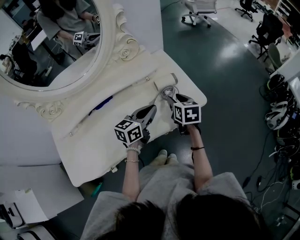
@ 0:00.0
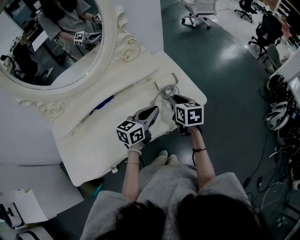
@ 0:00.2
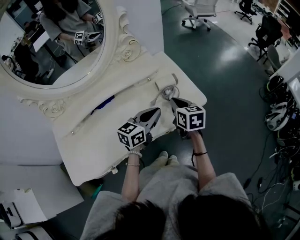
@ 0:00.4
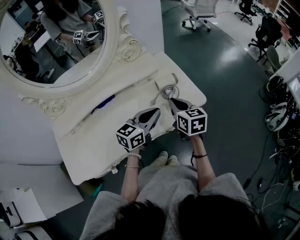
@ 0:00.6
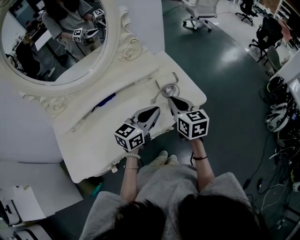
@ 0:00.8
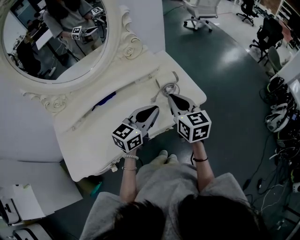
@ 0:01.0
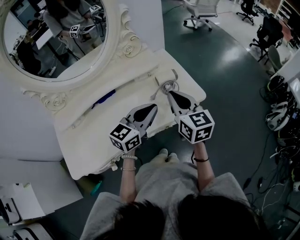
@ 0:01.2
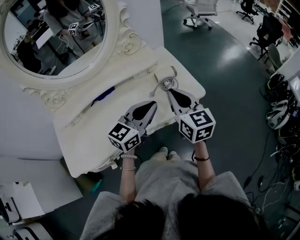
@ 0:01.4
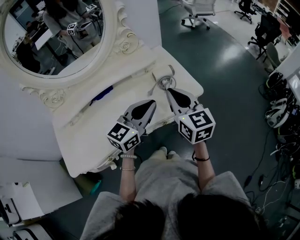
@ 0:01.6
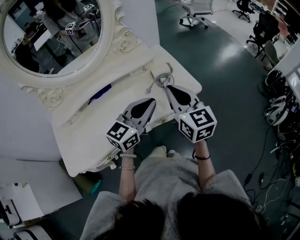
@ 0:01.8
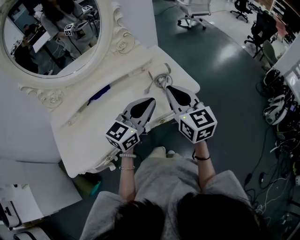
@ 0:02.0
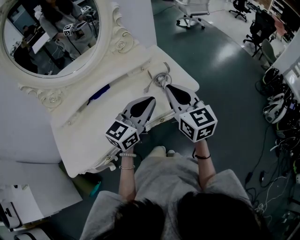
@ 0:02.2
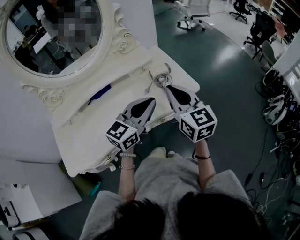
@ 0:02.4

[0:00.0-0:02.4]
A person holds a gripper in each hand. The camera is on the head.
0:00.0 to 0:01.2: The right gripper is displaced upward and backward by roughly 15 cm, changes its angle by about 30 degrees, and closes up, while the left gripper heads upward and backward, covering approximately 10 cm.
0:01.2 to 0:02.4: The left gripper moves approximately 5 cm. Meanwhile the right gripper heads backward, covering approximately 5 cm.

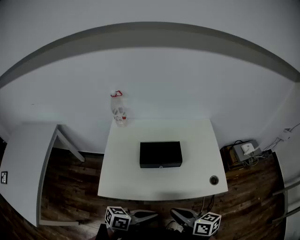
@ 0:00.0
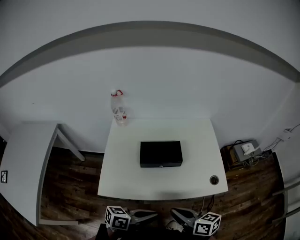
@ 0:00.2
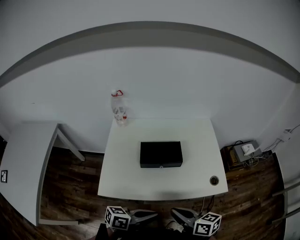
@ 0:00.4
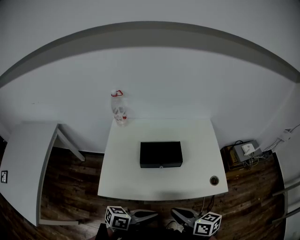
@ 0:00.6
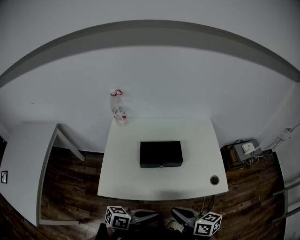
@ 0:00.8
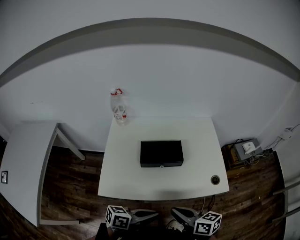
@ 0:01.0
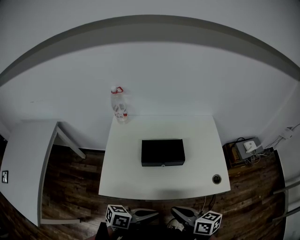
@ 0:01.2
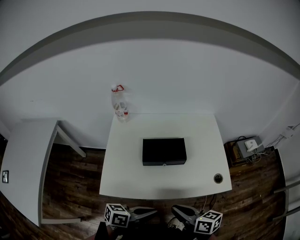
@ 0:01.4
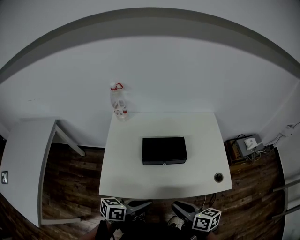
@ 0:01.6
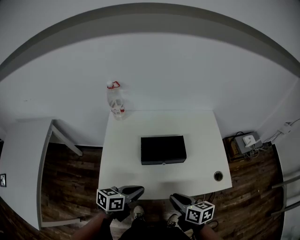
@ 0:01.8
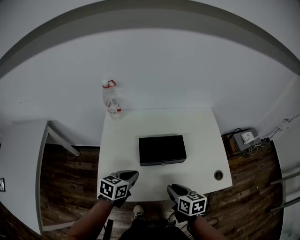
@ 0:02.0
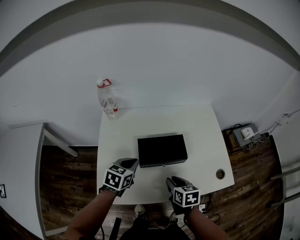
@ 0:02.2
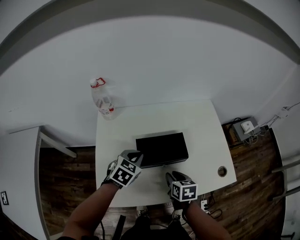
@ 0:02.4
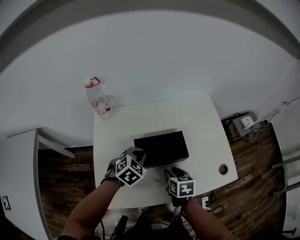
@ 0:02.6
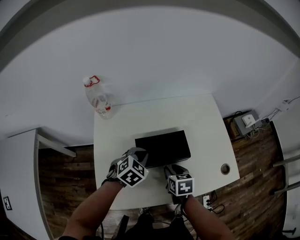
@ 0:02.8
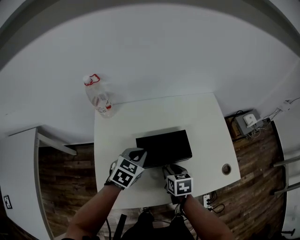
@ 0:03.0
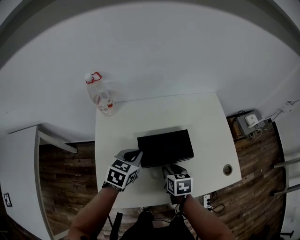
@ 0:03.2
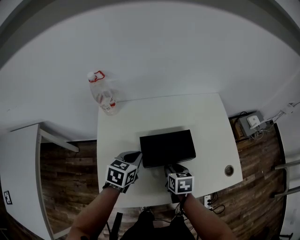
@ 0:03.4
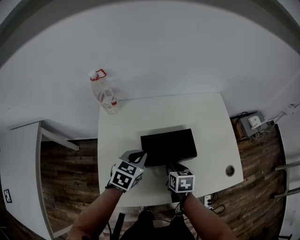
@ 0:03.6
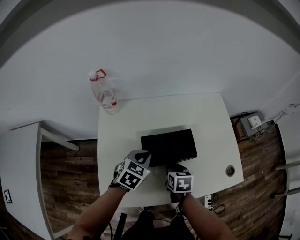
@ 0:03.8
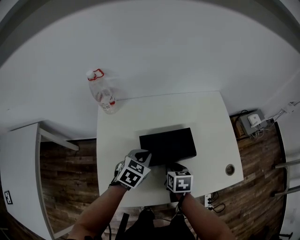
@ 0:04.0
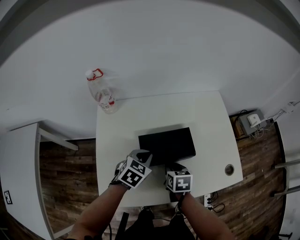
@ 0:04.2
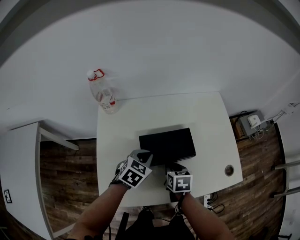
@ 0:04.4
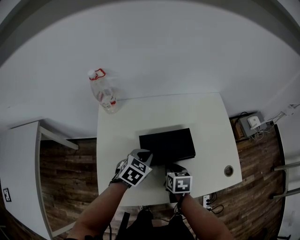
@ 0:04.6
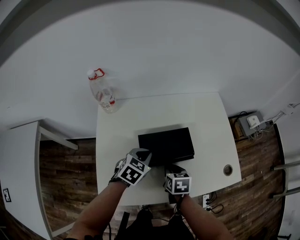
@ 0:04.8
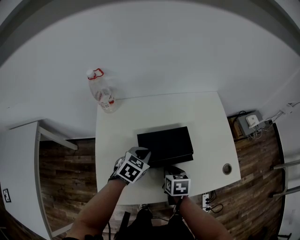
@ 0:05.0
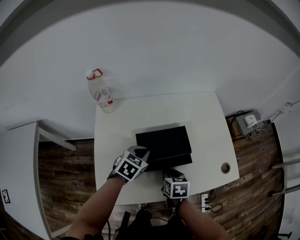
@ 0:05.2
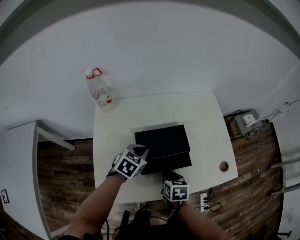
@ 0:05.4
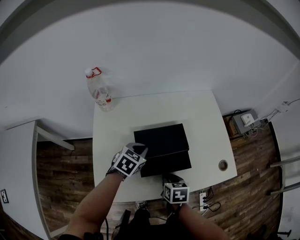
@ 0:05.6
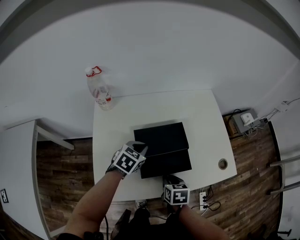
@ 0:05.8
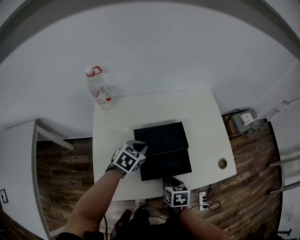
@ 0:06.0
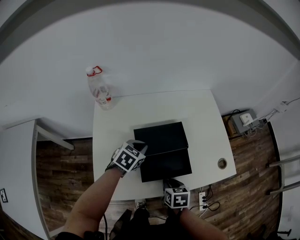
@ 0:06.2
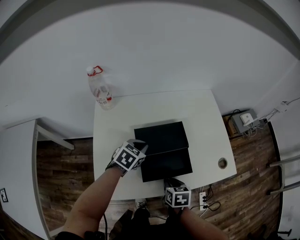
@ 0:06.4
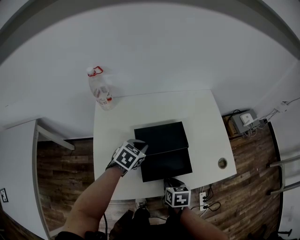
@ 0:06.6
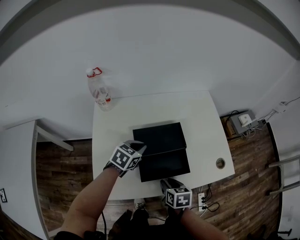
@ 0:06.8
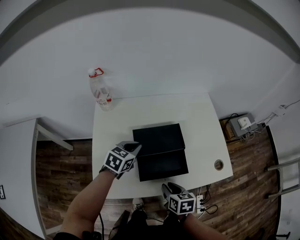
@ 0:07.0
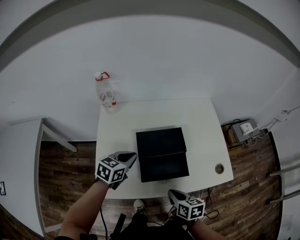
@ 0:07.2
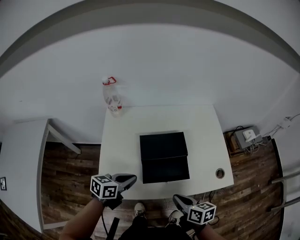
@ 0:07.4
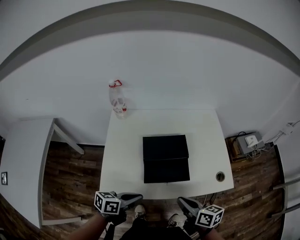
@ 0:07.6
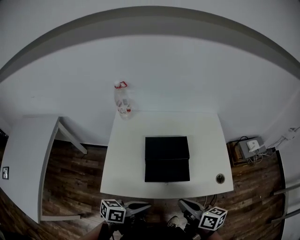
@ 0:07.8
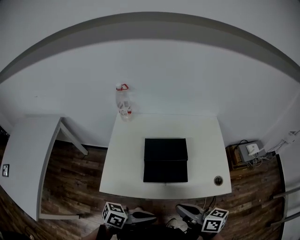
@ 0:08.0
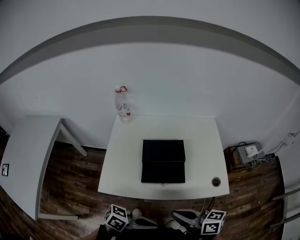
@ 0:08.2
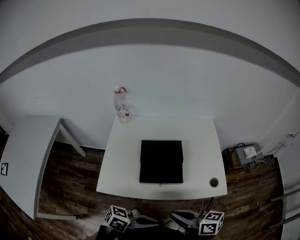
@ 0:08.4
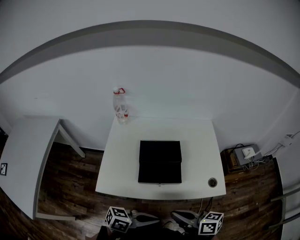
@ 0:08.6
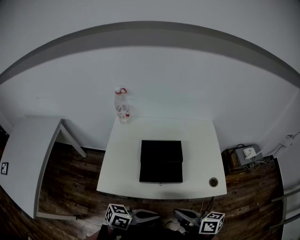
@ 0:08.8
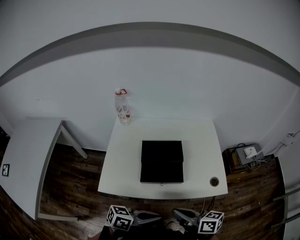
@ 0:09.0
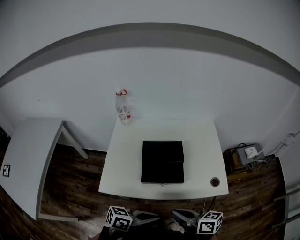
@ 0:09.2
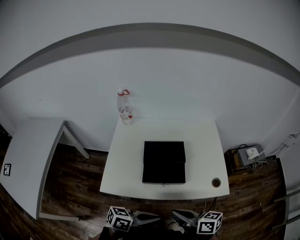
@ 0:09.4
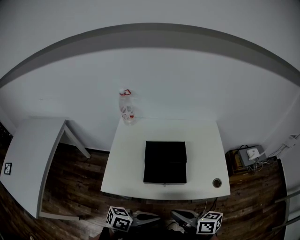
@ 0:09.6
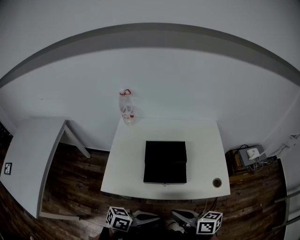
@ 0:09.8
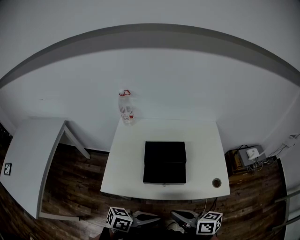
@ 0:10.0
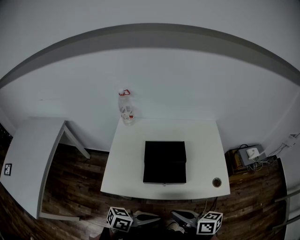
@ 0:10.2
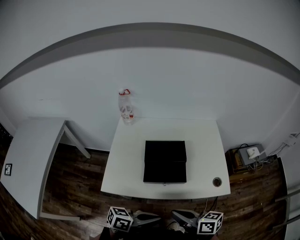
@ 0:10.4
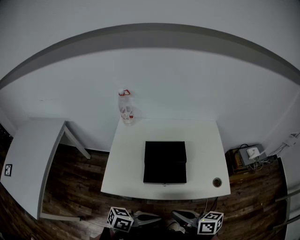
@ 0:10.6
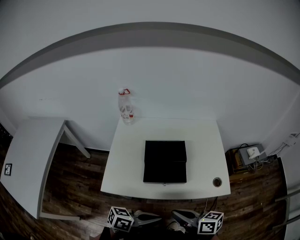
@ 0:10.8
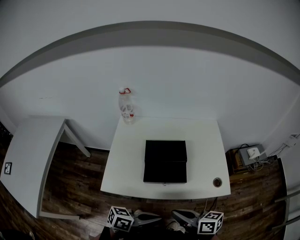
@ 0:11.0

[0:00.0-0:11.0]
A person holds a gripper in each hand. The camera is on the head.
0:00.0 to 0:01.6: The left gripper is displaced to the left and forward by about 10 cm.
0:01.6 to 0:03.2: The left gripper moves forward, some 25 cm, and swivels about 50 degrees, while the right gripper heads forward and downward, covering some 25 cm, and swivels about 40 degrees.
0:03.2 to 0:04.8: The left gripper ends up approximately 5 cm from where it was.
0:04.8 to 0:06.2: The right gripper shifts about 10 cm backward.
0:06.2 to 0:07.8: The left gripper moves backward, about 25 cm, and angles its fingers upward, by approximately 30 degrees, while the right gripper heads upward and backward, covering some 20 cm, and angles its fingers upward, by some 40 degrees.
0:07.8 to 0:09.4: The right gripper moves some 5 cm; the left gripper ends up about 10 cm from where it was.
0:09.4 to 0:11.0: Both grippers stay put.

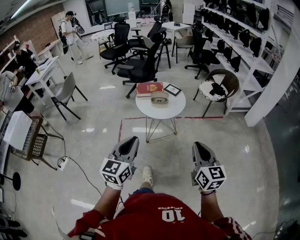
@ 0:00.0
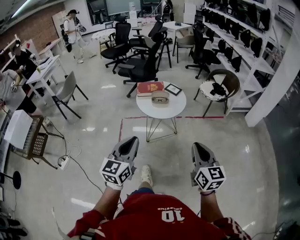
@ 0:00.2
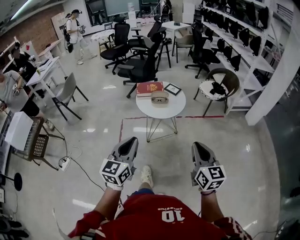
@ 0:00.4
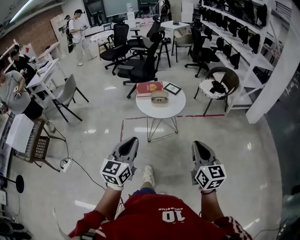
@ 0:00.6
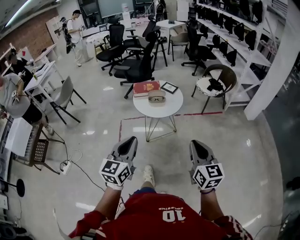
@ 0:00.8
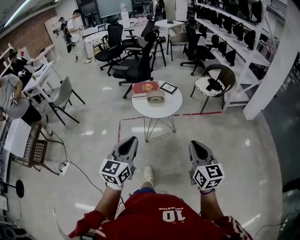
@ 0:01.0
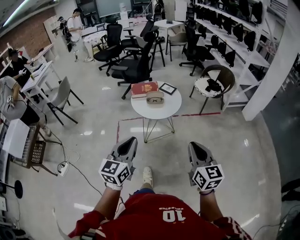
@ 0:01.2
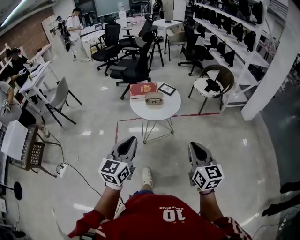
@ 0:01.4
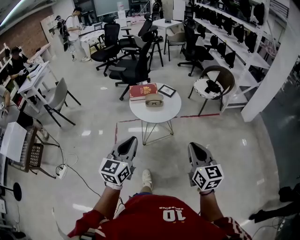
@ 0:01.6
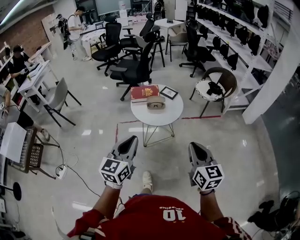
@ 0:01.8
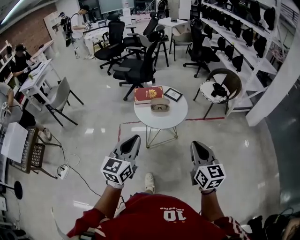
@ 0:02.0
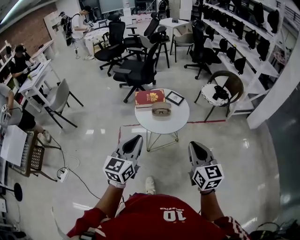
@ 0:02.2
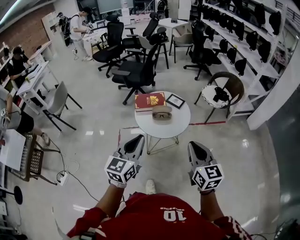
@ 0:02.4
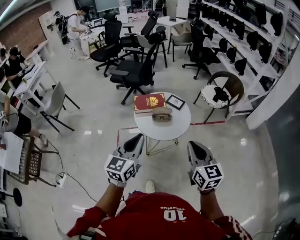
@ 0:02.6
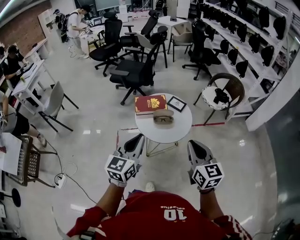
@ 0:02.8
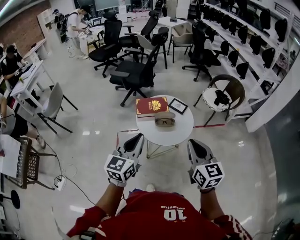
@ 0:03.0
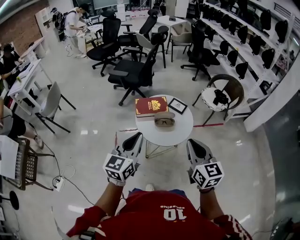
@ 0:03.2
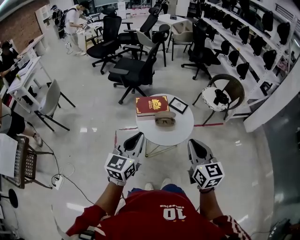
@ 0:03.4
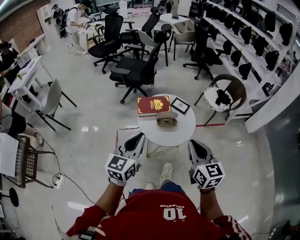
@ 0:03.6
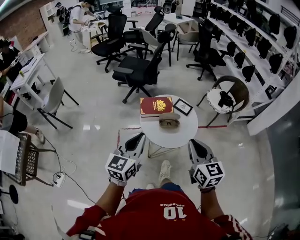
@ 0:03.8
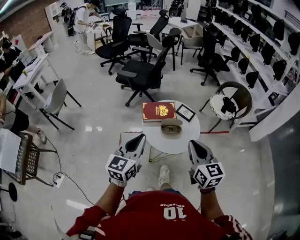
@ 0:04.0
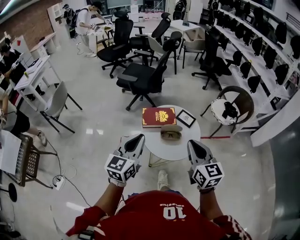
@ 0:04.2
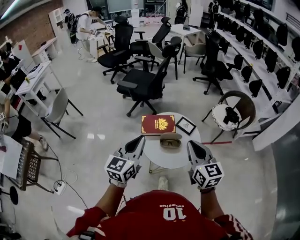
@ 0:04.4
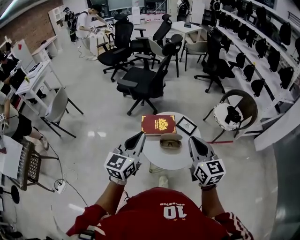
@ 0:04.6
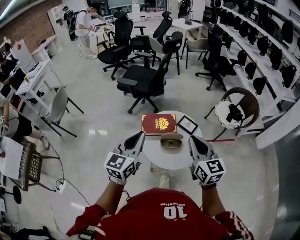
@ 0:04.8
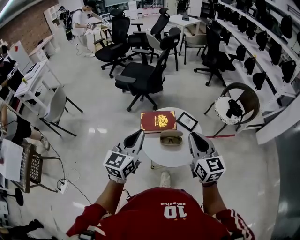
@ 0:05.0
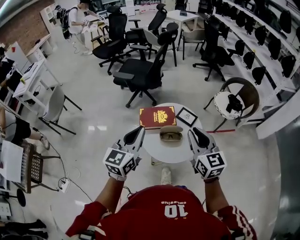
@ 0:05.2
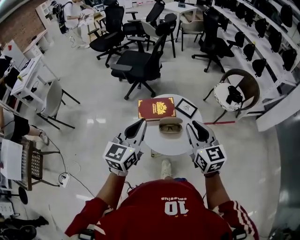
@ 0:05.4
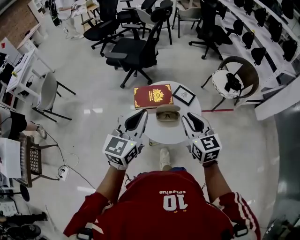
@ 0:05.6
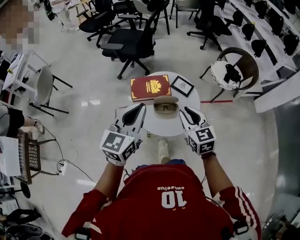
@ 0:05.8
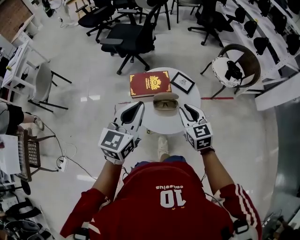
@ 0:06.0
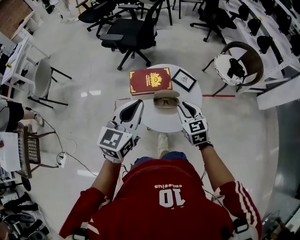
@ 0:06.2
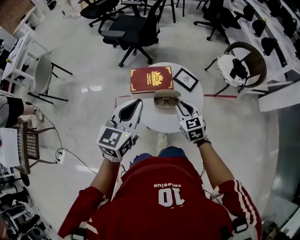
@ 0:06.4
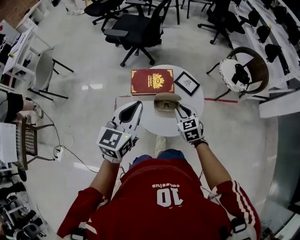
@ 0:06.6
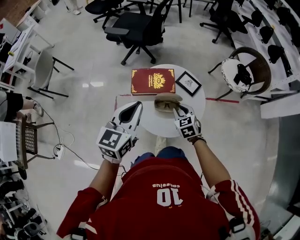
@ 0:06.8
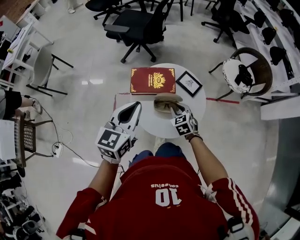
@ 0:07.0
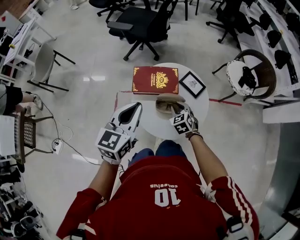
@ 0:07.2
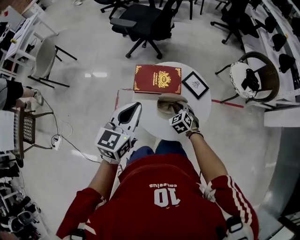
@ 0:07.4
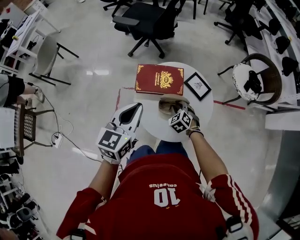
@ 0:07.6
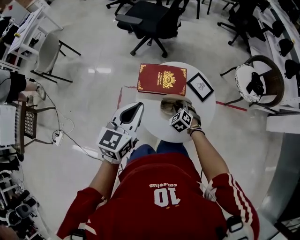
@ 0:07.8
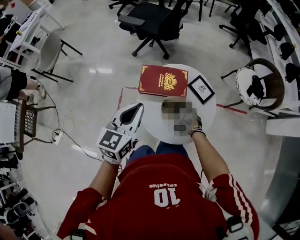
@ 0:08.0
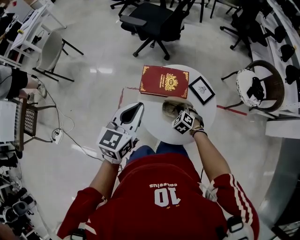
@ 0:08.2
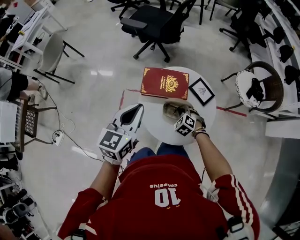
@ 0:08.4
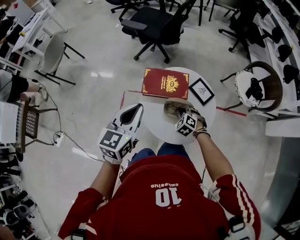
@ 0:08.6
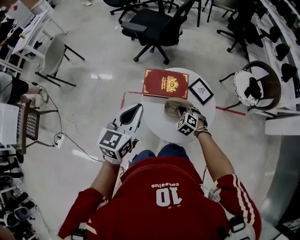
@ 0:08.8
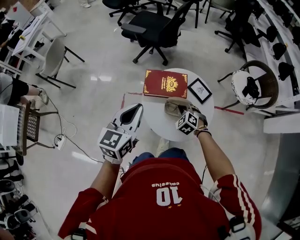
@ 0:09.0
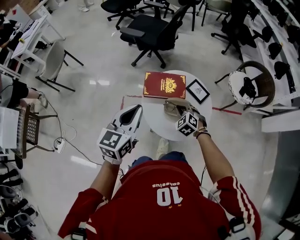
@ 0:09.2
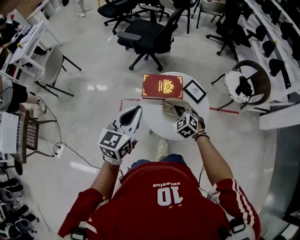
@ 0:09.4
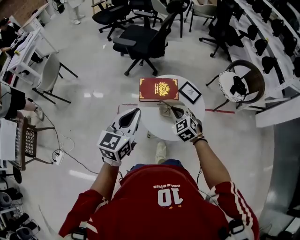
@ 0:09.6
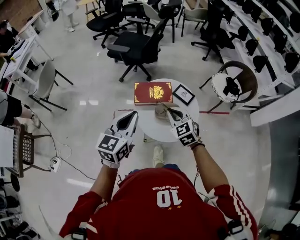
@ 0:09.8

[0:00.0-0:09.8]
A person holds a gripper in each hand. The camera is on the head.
0:00.0 to 0:01.4: The grippers stay close to where they were, moving slightly.
0:01.4 to 0:02.8: The left gripper travels forward by roughly 25 cm; the right gripper shifts some 25 cm forward and to the left.
0:02.8 to 0:04.2: The two grippers go approximately 15 cm forward and to the left.
0:04.2 to 0:05.6: The left gripper heads forward and to the right, covering some 10 cm, while the right gripper heads forward and downward, covering roughly 10 cm.
0:05.6 to 0:07.0: The right gripper is displaced downward by some 30 cm, and turns by about 30 degrees; the left gripper goes approximately 10 cm downward and forward.
0:07.0 to 0:08.4: The right gripper shifts about 10 cm downward, and rotates about 40 degrees. The left gripper moves approximately 5 cm.
0:08.4 to 0:09.8: The right gripper heads upward, covering some 25 cm, and swivels some 30 degrees. Meanwhile the left gripper heads backward and upward, covering approximately 10 cm.
